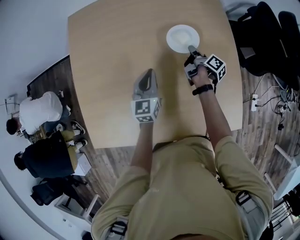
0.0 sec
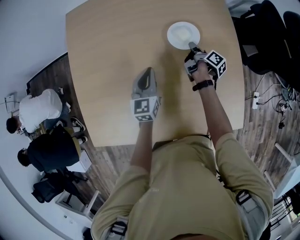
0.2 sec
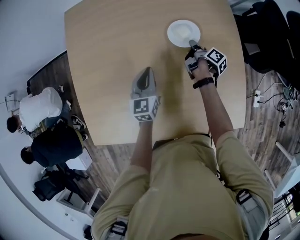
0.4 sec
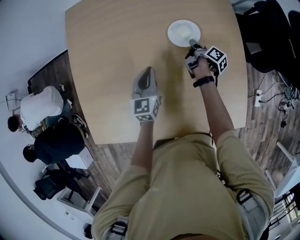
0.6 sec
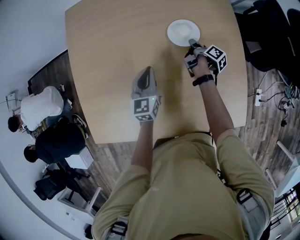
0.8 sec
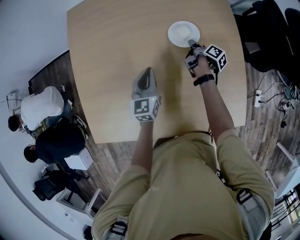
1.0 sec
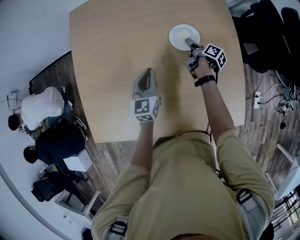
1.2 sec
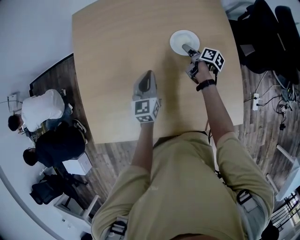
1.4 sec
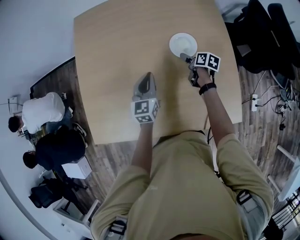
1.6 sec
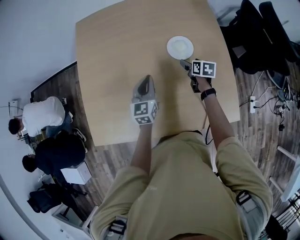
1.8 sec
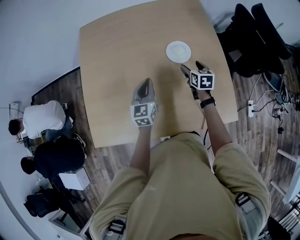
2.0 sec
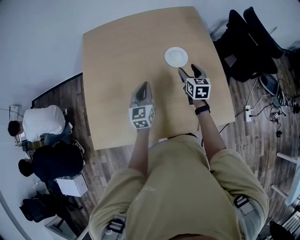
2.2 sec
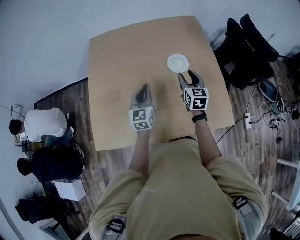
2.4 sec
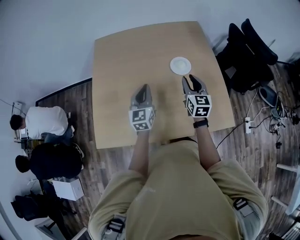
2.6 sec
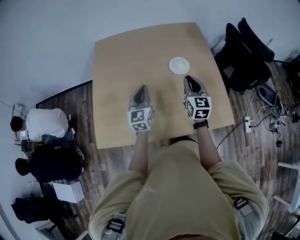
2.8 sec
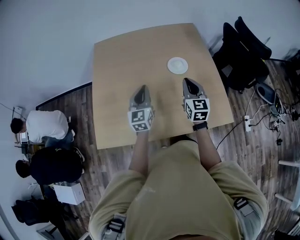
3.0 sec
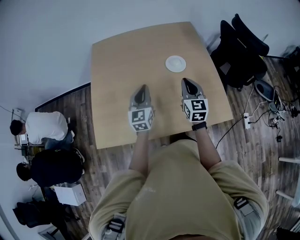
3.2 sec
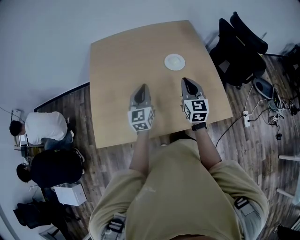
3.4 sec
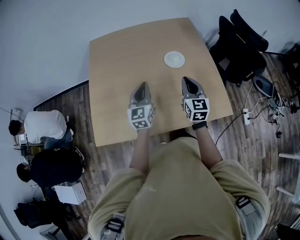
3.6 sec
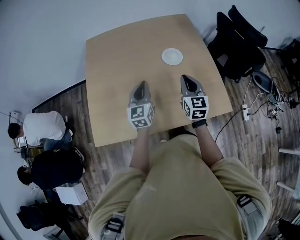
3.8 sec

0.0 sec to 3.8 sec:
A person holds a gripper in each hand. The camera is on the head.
1.2 sec to 2.6 sec: The left gripper heads upward, covering approximately 15 cm.

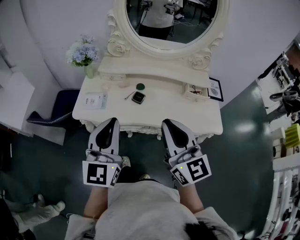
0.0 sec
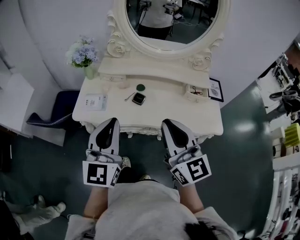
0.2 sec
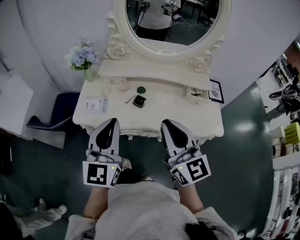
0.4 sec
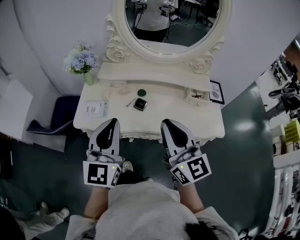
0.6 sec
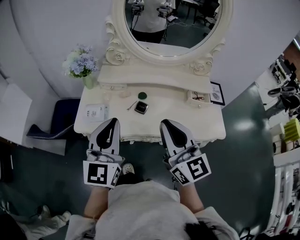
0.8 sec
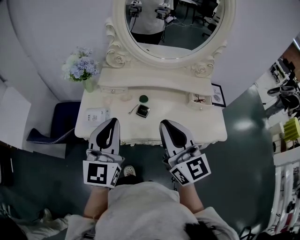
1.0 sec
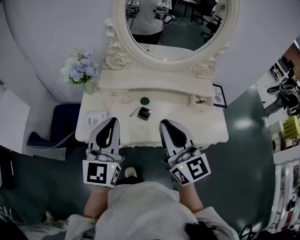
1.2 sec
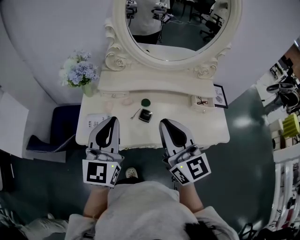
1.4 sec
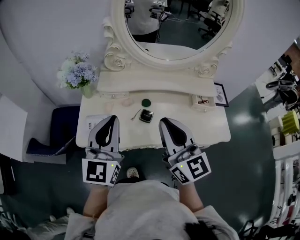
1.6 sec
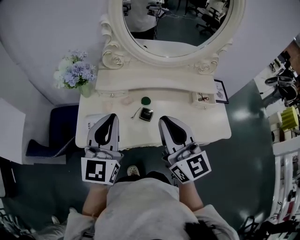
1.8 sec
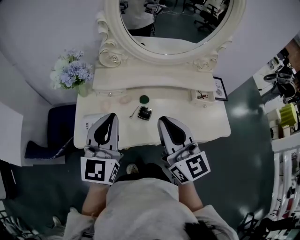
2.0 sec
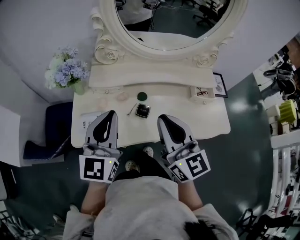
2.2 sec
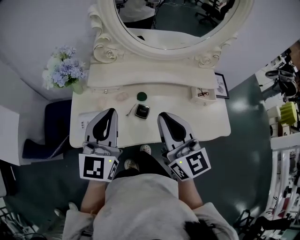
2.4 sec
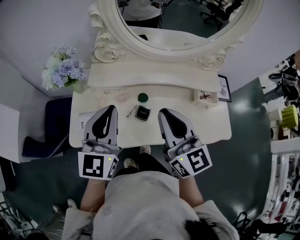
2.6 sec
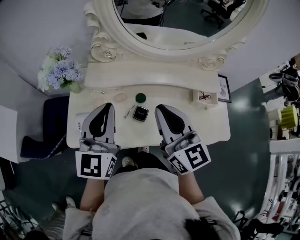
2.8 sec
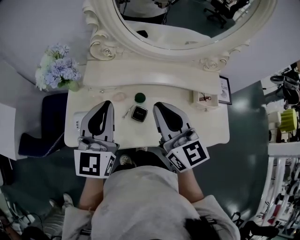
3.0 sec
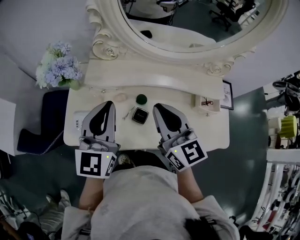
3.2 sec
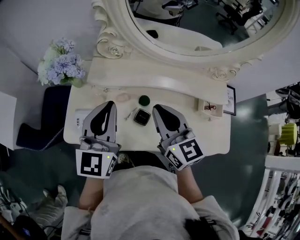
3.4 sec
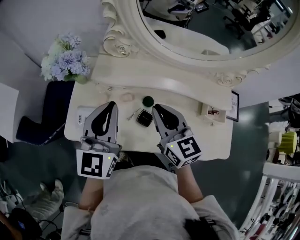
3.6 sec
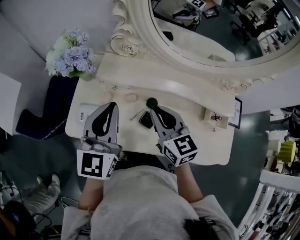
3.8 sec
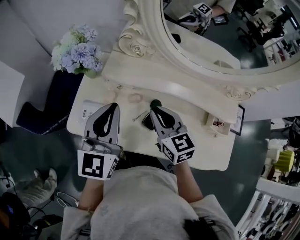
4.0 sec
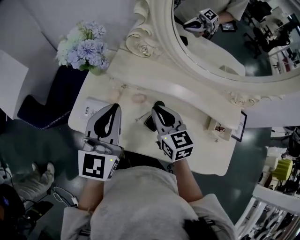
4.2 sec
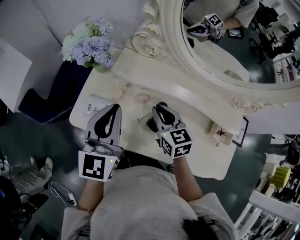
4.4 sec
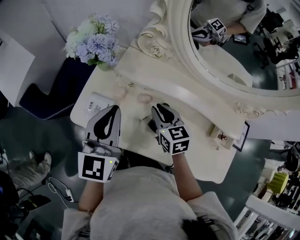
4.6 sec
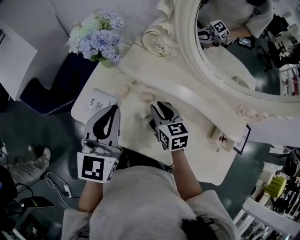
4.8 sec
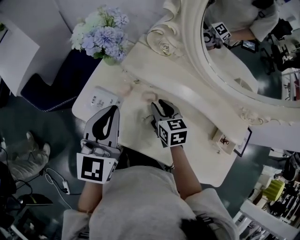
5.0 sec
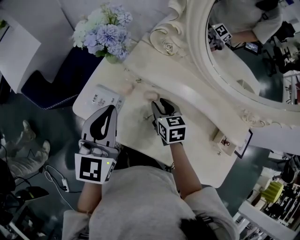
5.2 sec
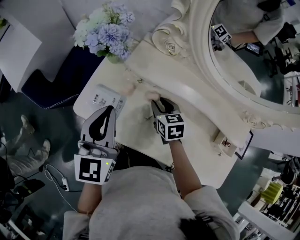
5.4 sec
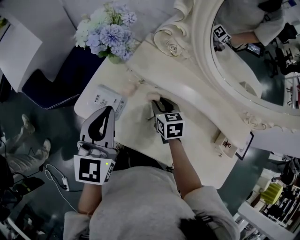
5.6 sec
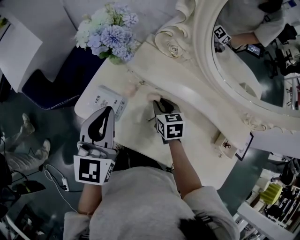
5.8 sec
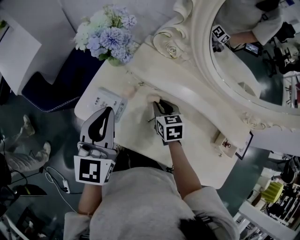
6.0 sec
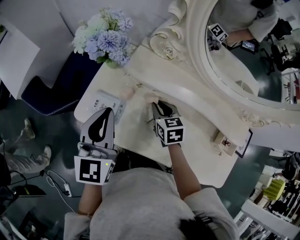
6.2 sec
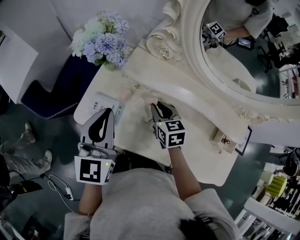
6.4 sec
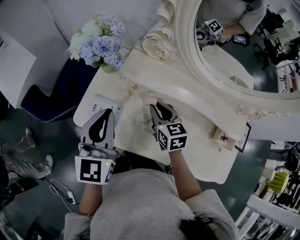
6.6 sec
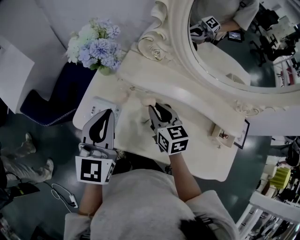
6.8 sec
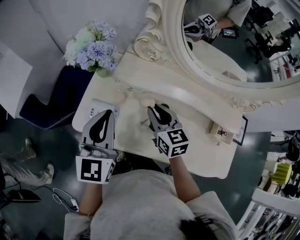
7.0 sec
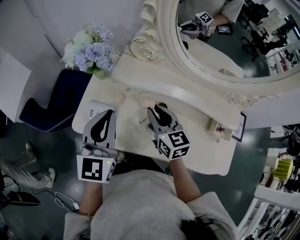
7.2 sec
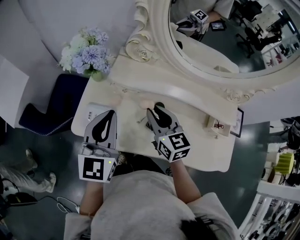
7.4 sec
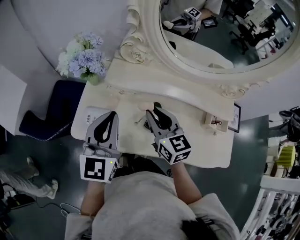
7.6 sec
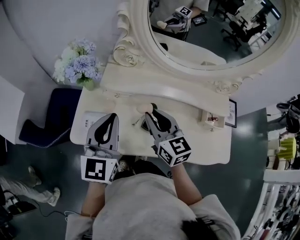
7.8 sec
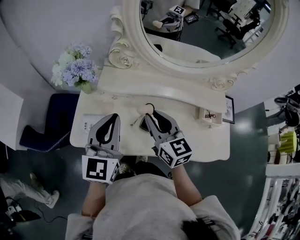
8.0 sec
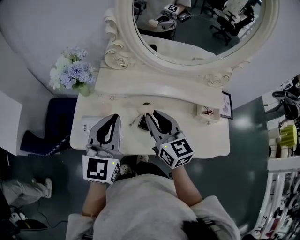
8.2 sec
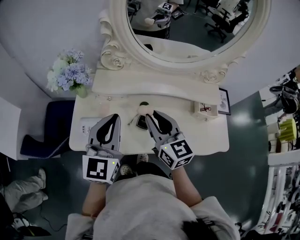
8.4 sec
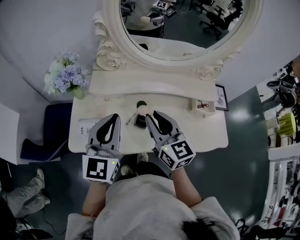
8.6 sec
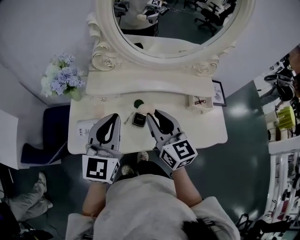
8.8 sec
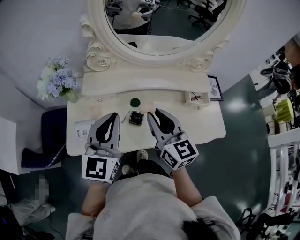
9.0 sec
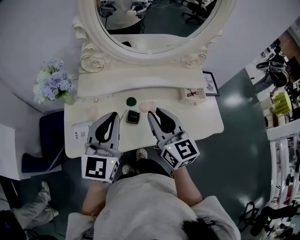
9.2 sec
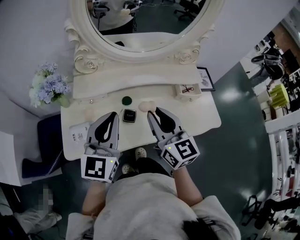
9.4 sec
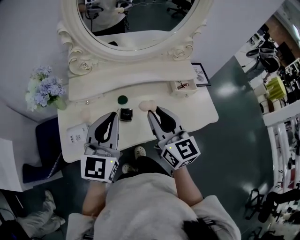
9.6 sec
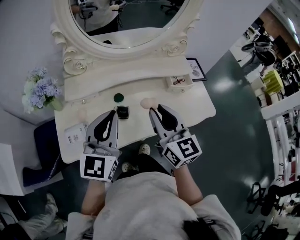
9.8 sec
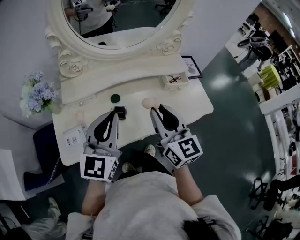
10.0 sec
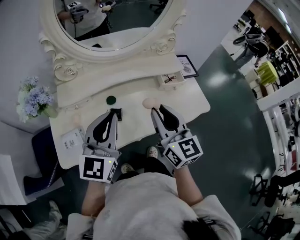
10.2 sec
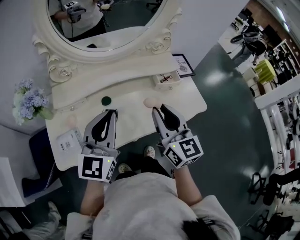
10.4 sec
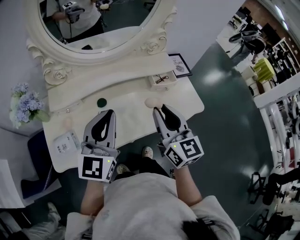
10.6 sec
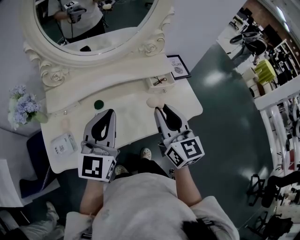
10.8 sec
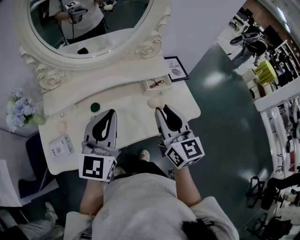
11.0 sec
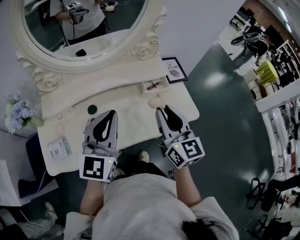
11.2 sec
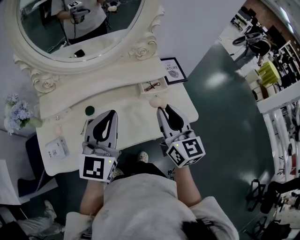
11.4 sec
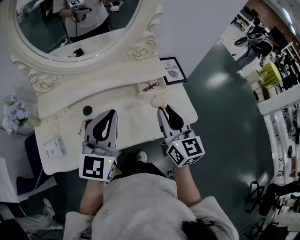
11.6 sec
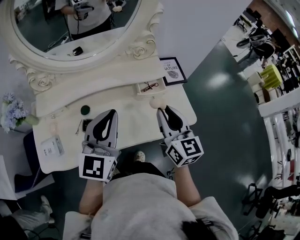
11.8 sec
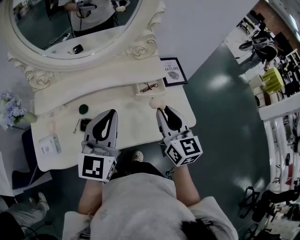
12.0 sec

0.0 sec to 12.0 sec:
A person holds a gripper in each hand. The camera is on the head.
0.0 sec to 1.6 sec: The right gripper travels forward and to the left by approximately 15 cm. Meanwhile the left gripper travels forward by some 15 cm.
1.6 sec to 3.0 sec: The two grippers go approximately 10 cm forward.
3.0 sec to 4.4 sec: The left gripper shifts some 5 cm to the left. Meanwhile the right gripper moves downward and forward, approximately 20 cm, and swivels some 30 degrees.
4.4 sec to 6.0 sec: The right gripper travels downward by some 10 cm. The left gripper travels to the left by roughly 5 cm.
6.0 sec to 7.6 sec: The right gripper shifts roughly 20 cm upward and backward, and points its fingers some 30 degrees further upward; the left gripper is displaced to the right by roughly 5 cm.
7.6 sec to 9.0 sec: The left gripper travels to the right by about 5 cm, and changes its angle by approximately 20 degrees. The right gripper travels backward, to the right and upward by about 10 cm, and turns by approximately 20 degrees.
9.0 sec to 10.4 sec: The grippers both shift to the right by roughly 10 cm. The right gripper swivels about 20 degrees.
10.4 sec to 12.0 sec: The grippers both shift to the right and forward by some 15 cm.

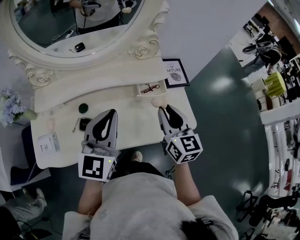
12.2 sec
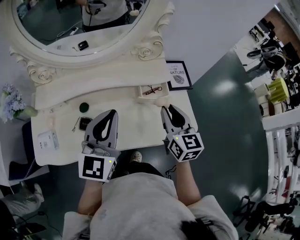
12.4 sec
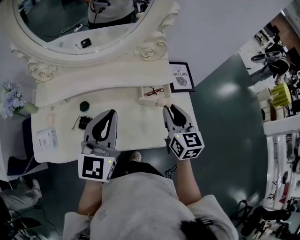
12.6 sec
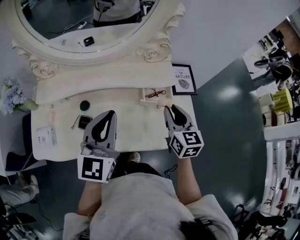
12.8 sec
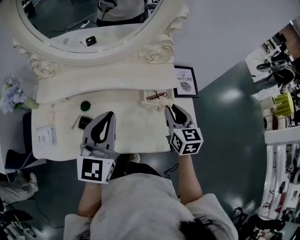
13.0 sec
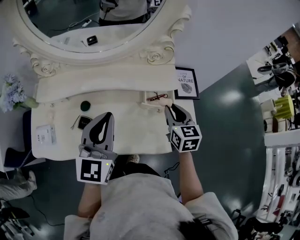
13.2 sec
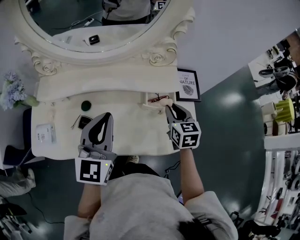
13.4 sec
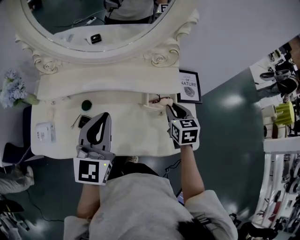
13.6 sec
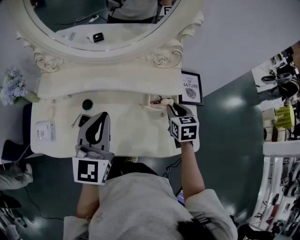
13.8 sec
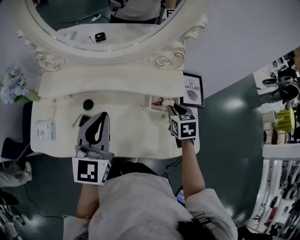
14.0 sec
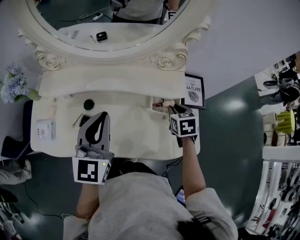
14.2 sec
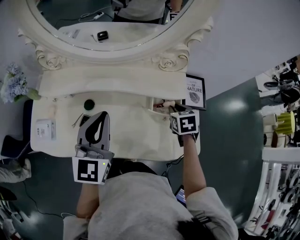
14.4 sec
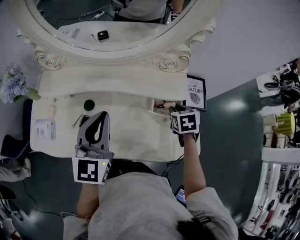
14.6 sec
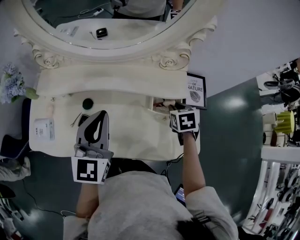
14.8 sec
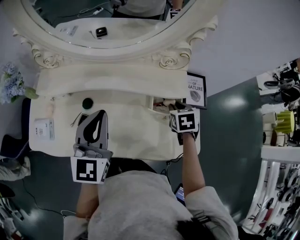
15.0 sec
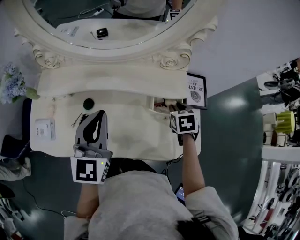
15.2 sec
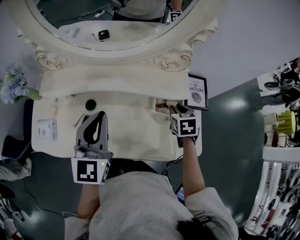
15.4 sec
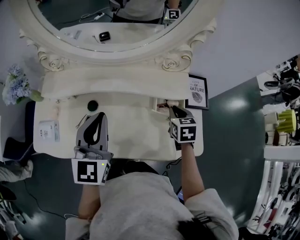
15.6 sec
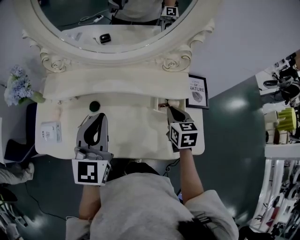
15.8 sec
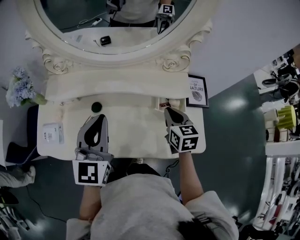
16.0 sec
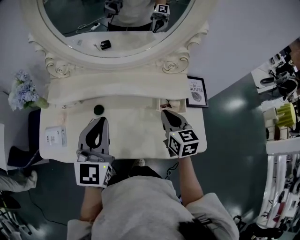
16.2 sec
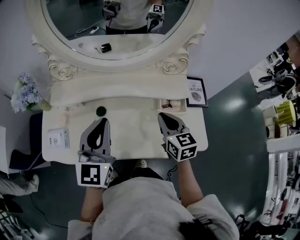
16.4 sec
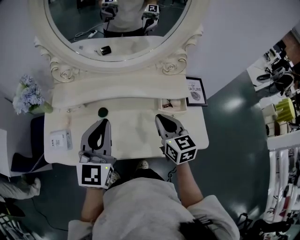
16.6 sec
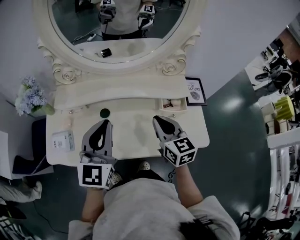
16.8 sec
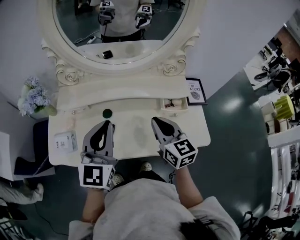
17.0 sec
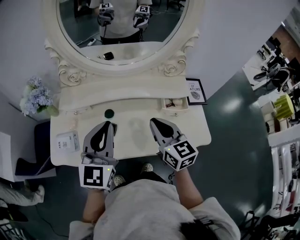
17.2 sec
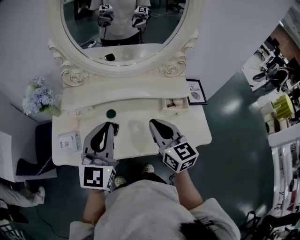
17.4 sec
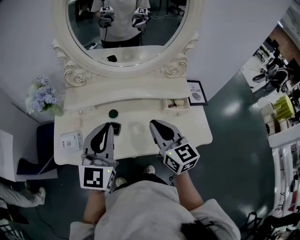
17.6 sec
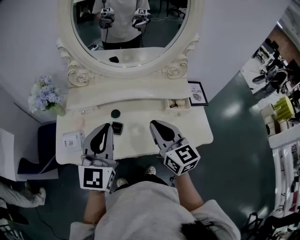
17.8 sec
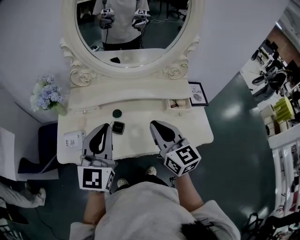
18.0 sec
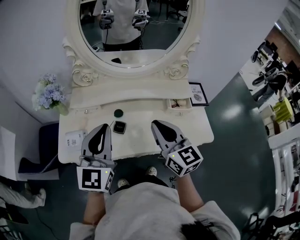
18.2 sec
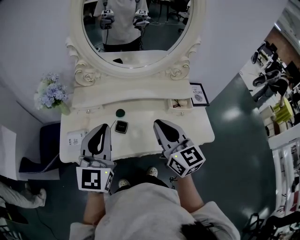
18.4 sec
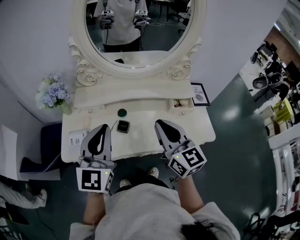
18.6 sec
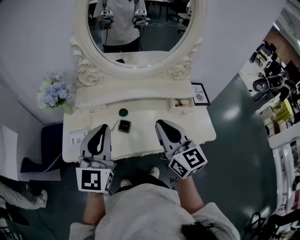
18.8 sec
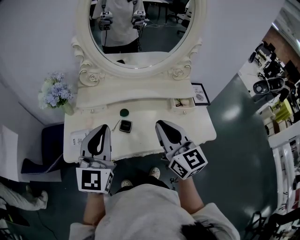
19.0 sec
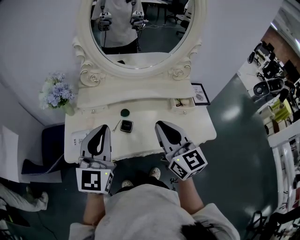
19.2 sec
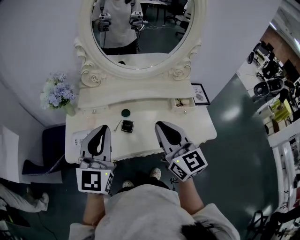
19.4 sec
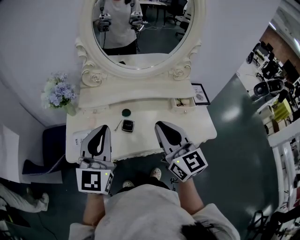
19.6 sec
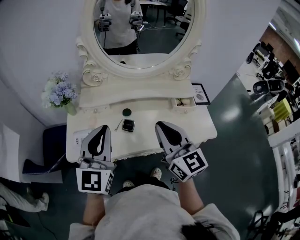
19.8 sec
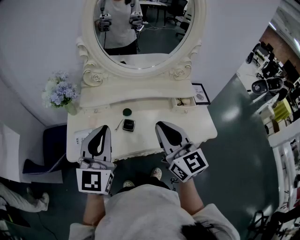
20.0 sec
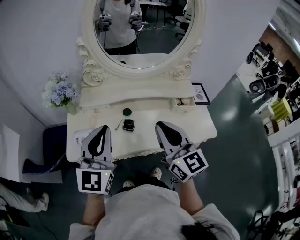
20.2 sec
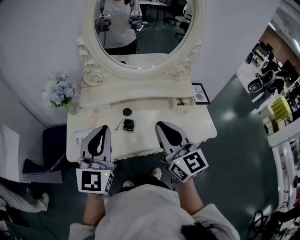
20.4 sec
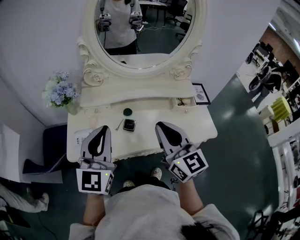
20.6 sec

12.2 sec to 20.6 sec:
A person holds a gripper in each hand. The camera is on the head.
12.2 sec to 13.6 sec: The left gripper ends up about 5 cm from where it was; the right gripper shifts approximately 15 cm forward and downward, and changes its angle by about 30 degrees.
13.6 sec to 15.0 sec: The right gripper shifts by approximately 5 cm, and changes its angle by roughly 20 degrees.
15.0 sec to 16.4 sec: The left gripper moves to the left, some 5 cm. The right gripper goes about 20 cm to the left, upward and backward, and tips its fingers upward by about 30 degrees.
16.4 sec to 17.8 sec: The left gripper travels to the left and backward by some 10 cm. The right gripper is displaced to the left, upward and backward by approximately 20 cm.
17.8 sec to 19.2 sec: The left gripper moves to the left, approximately 5 cm, while the right gripper goes some 5 cm to the left and upward.
19.2 sec to 20.6 sec: The grippers stay close to where they were, moving slightly.
